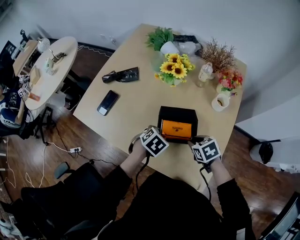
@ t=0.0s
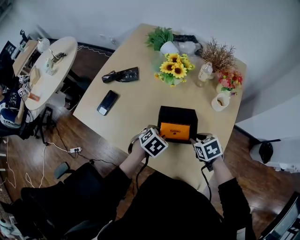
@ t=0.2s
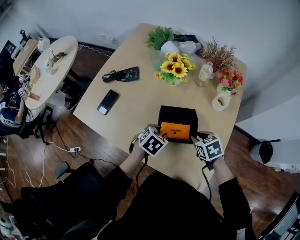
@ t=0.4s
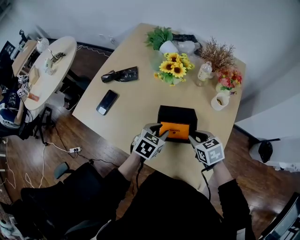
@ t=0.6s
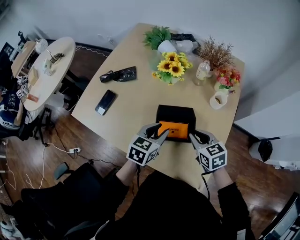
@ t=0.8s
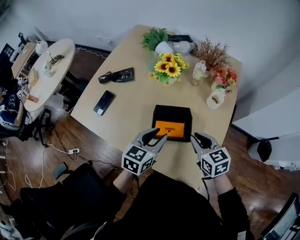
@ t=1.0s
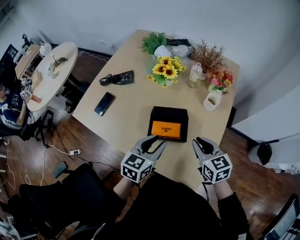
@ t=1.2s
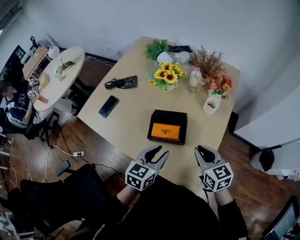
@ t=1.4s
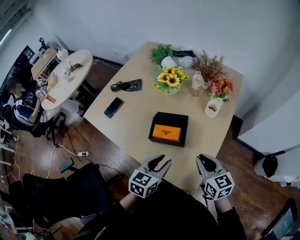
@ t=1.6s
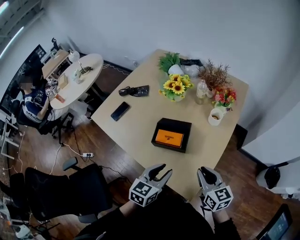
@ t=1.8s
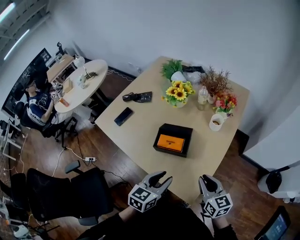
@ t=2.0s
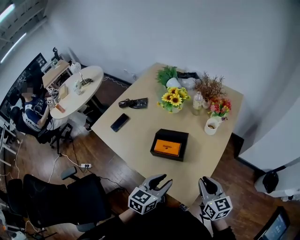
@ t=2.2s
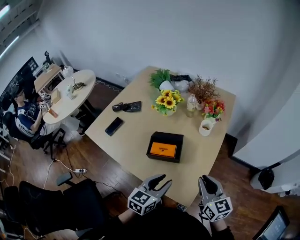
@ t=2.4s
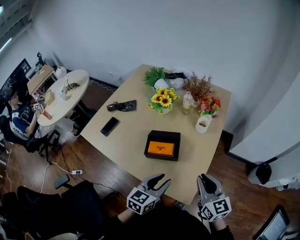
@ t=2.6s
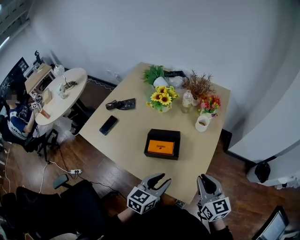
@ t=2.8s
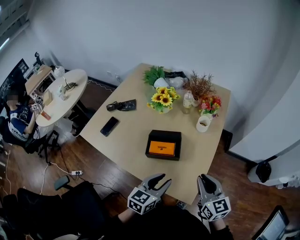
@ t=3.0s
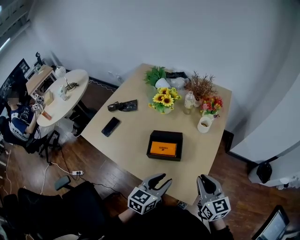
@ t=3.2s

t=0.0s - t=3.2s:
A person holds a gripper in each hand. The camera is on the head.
t=0.0s - t=1.6s: The right gripper is displaced upward, to the right and backward by approximately 20 cm, and tips its fingers upward by about 40 degrees. Meanwhile the left gripper travels backward, upward and to the right by approximately 20 cm, and tips its fingers upward by about 40 degrees.
t=1.6s - t=3.2s: The right gripper travels upward and backward by roughly 10 cm; the left gripper shifts by about 5 cm.

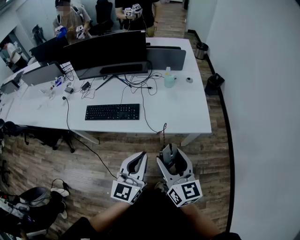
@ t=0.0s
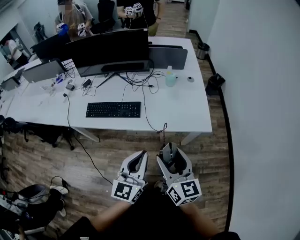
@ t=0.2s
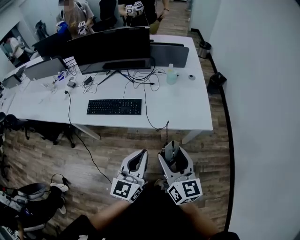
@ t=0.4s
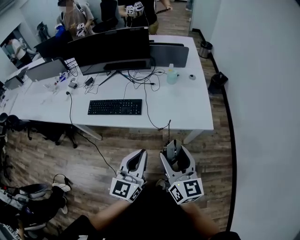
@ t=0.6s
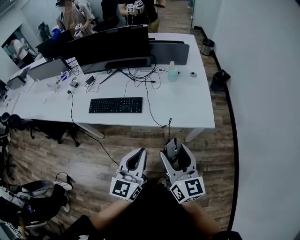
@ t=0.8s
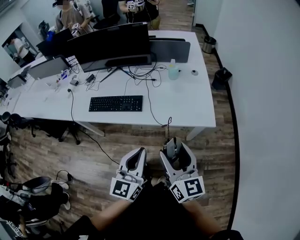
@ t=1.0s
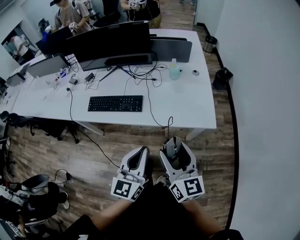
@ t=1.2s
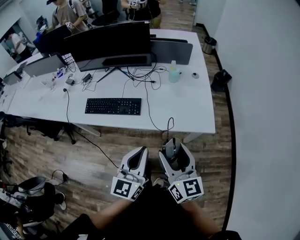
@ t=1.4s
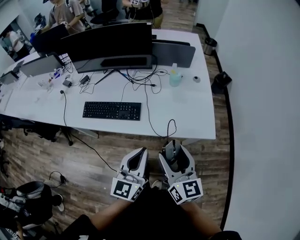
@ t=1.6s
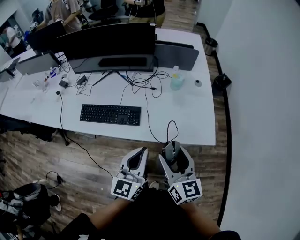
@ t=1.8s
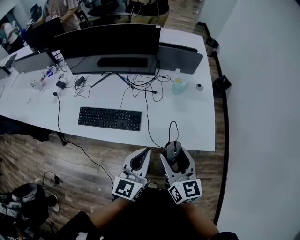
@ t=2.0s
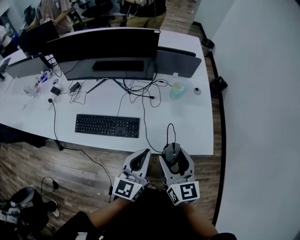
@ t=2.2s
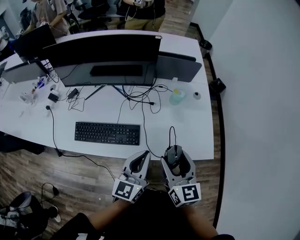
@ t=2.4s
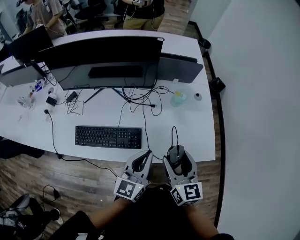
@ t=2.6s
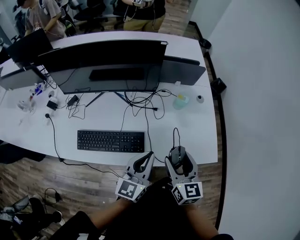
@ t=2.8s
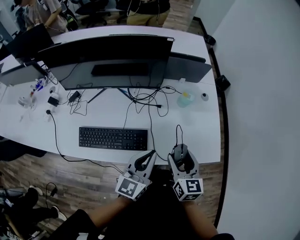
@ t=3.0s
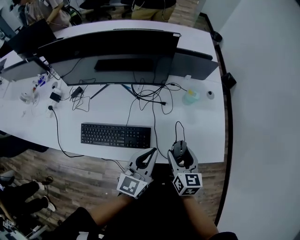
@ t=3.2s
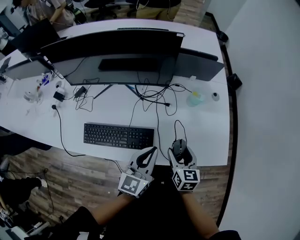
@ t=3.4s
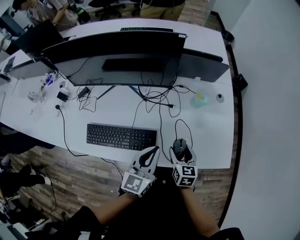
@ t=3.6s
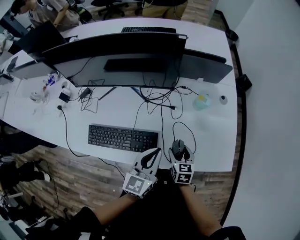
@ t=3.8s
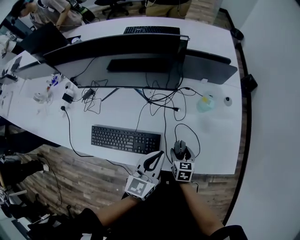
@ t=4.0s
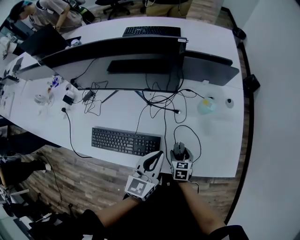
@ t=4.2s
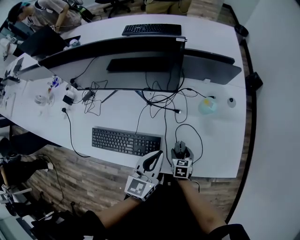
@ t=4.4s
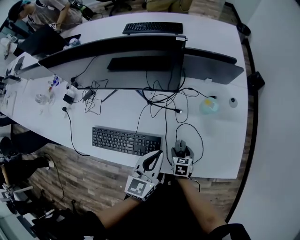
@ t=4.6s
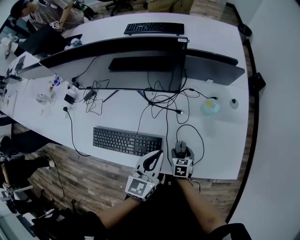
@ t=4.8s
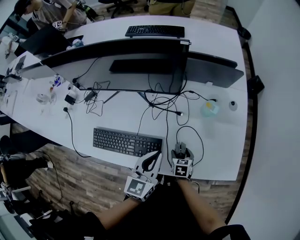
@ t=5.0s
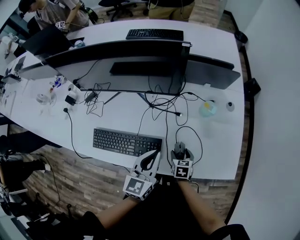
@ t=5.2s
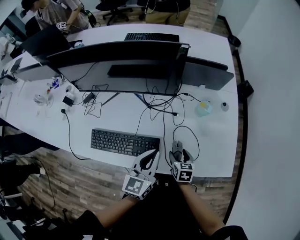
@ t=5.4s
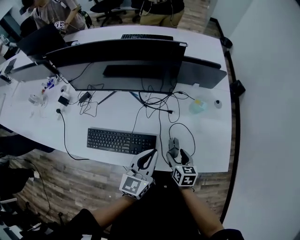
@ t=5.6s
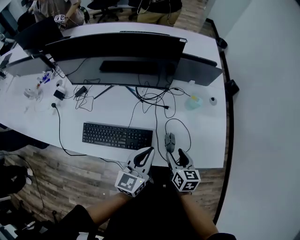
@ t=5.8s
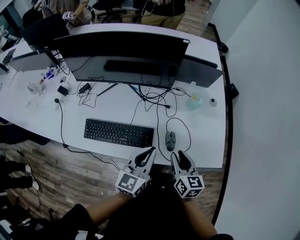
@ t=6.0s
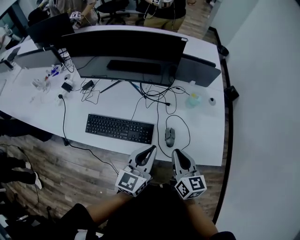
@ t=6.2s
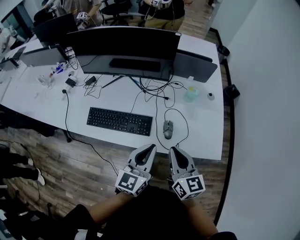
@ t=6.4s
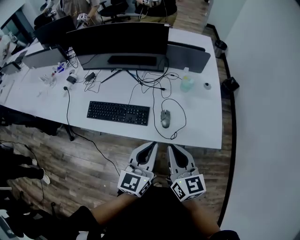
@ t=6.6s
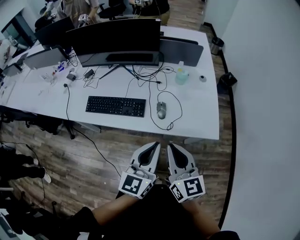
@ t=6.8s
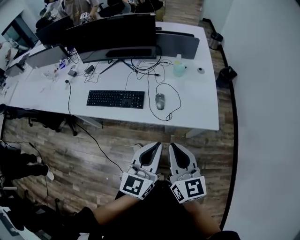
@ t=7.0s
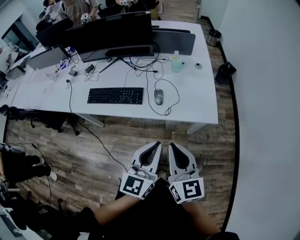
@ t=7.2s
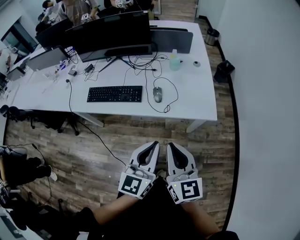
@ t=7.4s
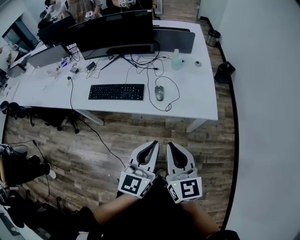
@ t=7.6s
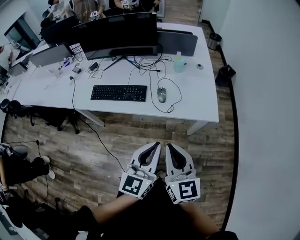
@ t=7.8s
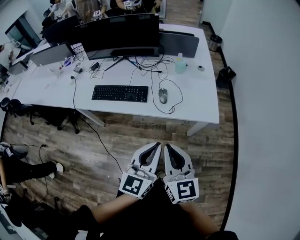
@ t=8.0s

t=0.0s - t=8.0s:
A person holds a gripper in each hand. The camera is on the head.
t=0.0s - t=1.6s: The two grippers go roughly 5 cm forward.
t=1.6s - t=3.2s: The left gripper goes roughly 25 cm forward. Meanwhile the right gripper travels forward and downward by about 25 cm, and swivels some 30 degrees.
t=3.2s - t=4.8s: The right gripper moves downward, approximately 25 cm, and turns by roughly 30 degrees, while the left gripper heads forward, covering approximately 10 cm.
t=4.8s - t=6.4s: The right gripper travels upward and backward by roughly 35 cm, angles its fingers upward, by some 50 degrees, and closes, while the left gripper is displaced backward and upward by some 20 cm.
t=6.4s - t=8.0s: The grippers both shift backward by roughly 25 cm.

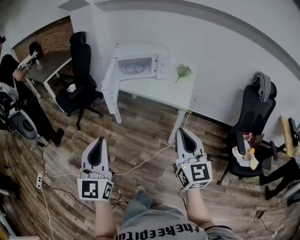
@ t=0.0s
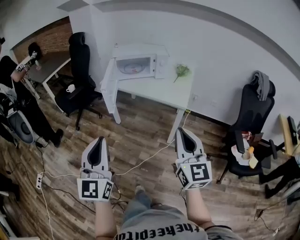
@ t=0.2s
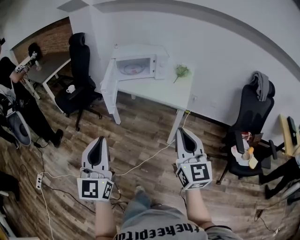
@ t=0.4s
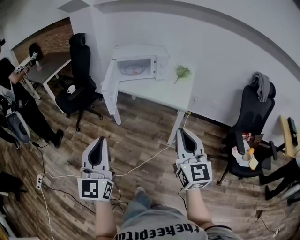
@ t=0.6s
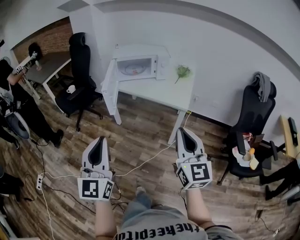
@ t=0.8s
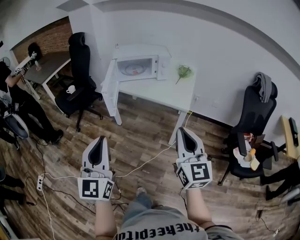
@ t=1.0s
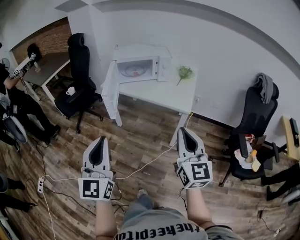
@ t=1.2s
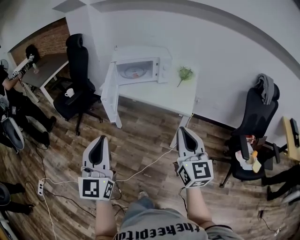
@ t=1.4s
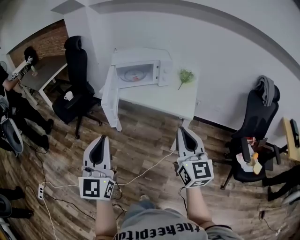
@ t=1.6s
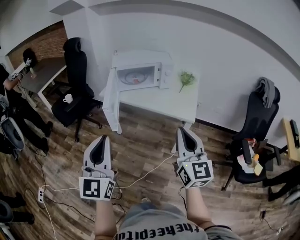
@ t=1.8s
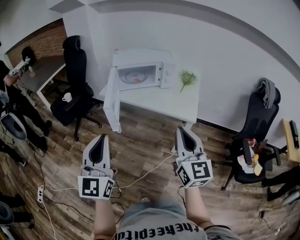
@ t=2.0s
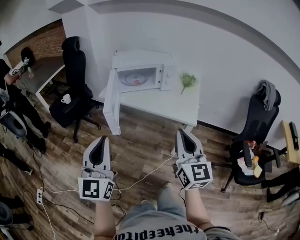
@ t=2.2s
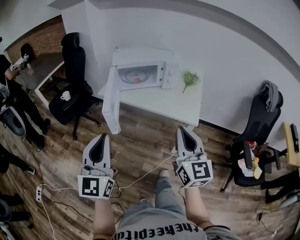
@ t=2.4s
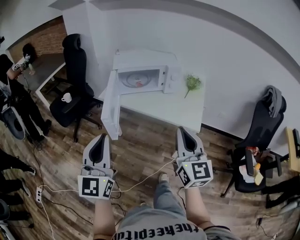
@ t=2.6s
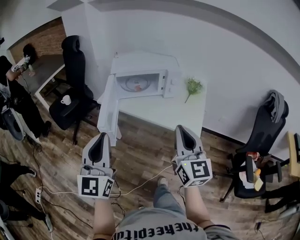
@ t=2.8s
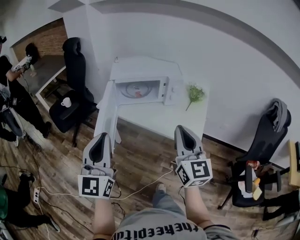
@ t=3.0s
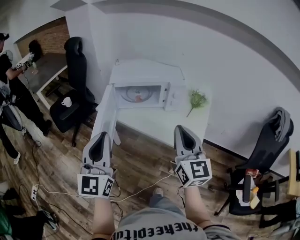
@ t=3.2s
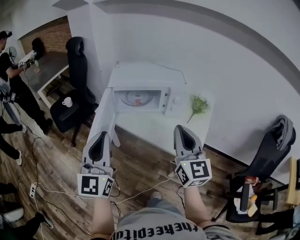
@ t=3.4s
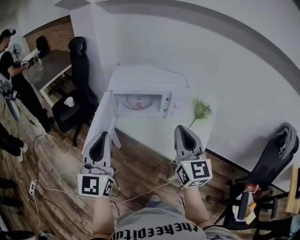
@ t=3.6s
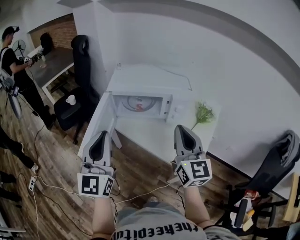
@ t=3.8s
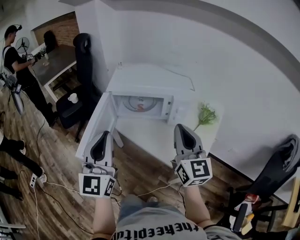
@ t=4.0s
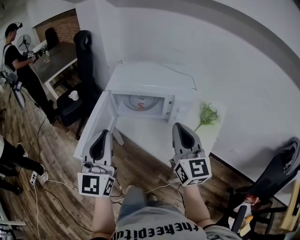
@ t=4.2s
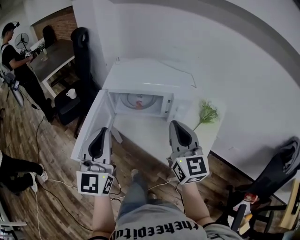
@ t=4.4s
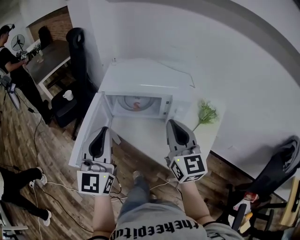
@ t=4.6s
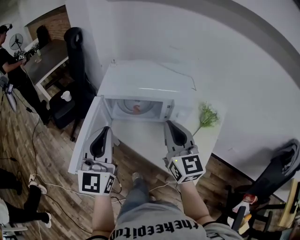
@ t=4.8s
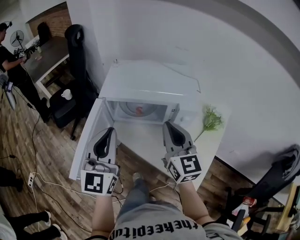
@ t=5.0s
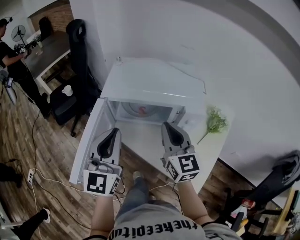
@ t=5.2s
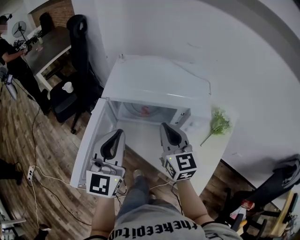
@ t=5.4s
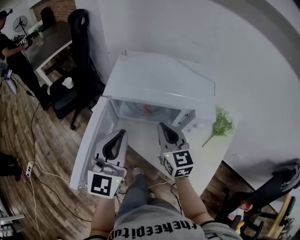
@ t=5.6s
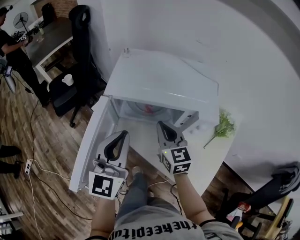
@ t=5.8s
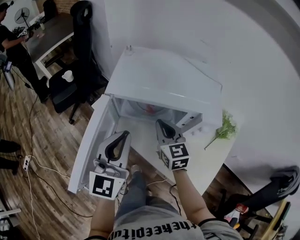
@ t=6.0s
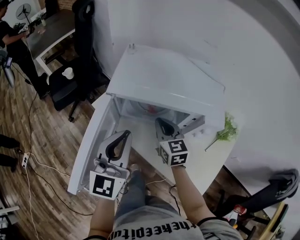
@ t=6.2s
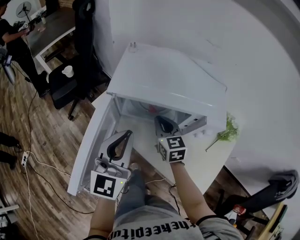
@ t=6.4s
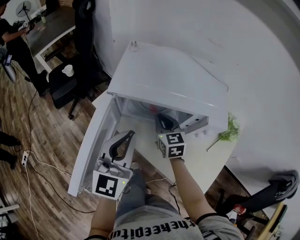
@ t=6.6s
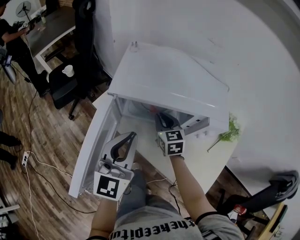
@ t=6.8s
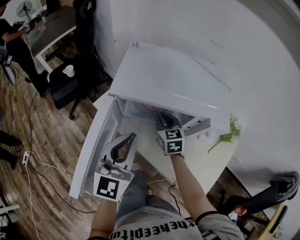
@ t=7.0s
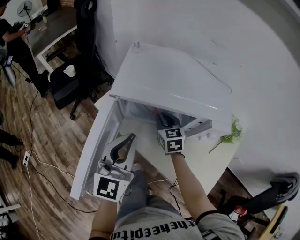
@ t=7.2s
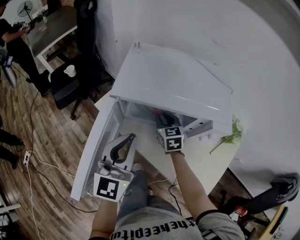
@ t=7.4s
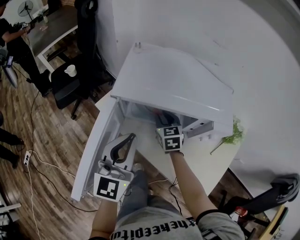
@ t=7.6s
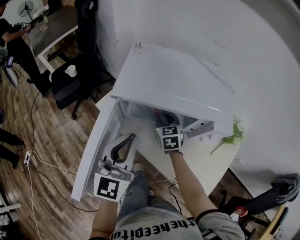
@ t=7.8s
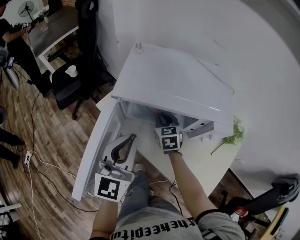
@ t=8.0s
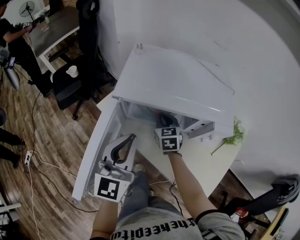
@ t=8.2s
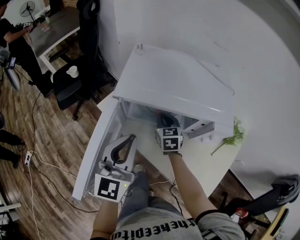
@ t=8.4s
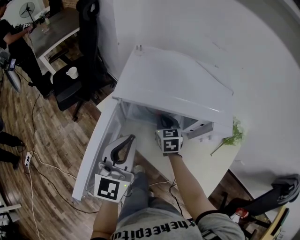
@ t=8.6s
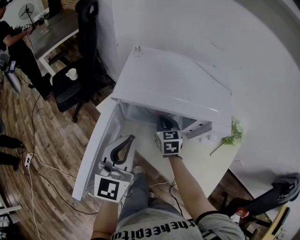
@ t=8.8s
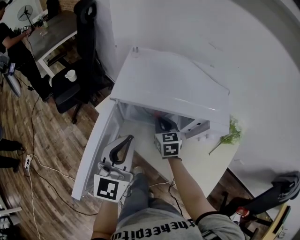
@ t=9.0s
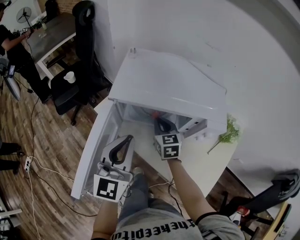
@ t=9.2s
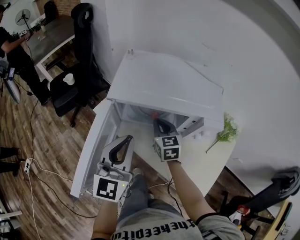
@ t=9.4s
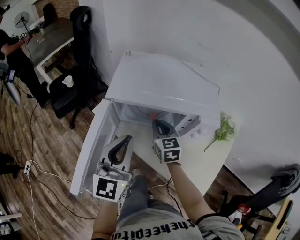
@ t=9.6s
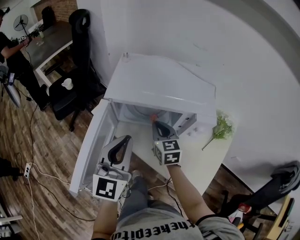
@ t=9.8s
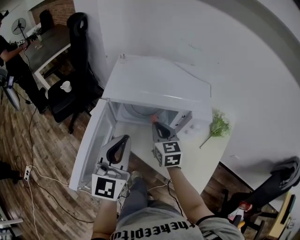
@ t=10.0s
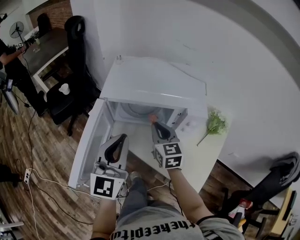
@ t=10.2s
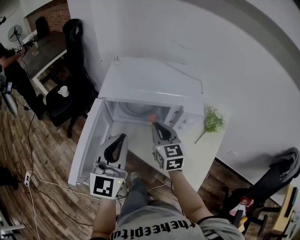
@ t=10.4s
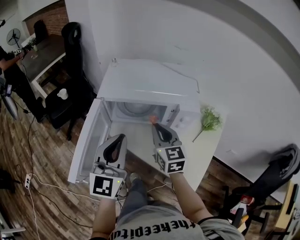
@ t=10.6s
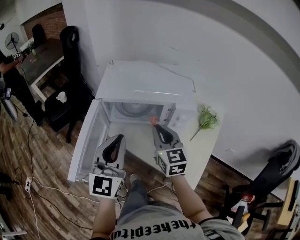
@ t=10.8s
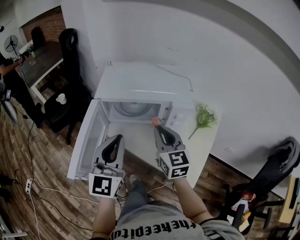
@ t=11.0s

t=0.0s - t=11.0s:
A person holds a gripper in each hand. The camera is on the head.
t=0.0s - t=1.6s: The two grippers go approximately 10 cm forward.
t=1.6s - t=3.2s: Both grippers travel together forward, roughly 25 cm.
t=3.2s - t=4.8s: The left gripper is displaced forward and to the right by roughly 20 cm, while the right gripper moves forward, roughly 20 cm.
t=4.8s - t=6.2s: The left gripper travels downward and forward by about 15 cm. Meanwhile the right gripper heads downward, forward and to the left, covering roughly 25 cm, and changes its angle by some 30 degrees.
t=6.2s - t=7.8s: The right gripper is displaced downward and forward by approximately 10 cm, and opens.
t=7.8s - t=9.4s: The right gripper changes place by roughly 5 cm, and closes.
t=9.4s - t=11.0s: The left gripper moves backward and upward, roughly 10 cm, while the right gripper travels upward, backward and to the right by approximately 25 cm.

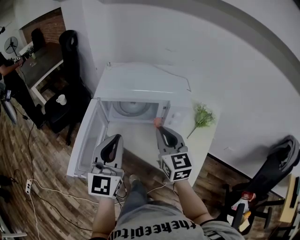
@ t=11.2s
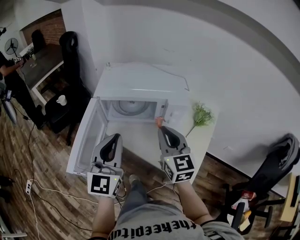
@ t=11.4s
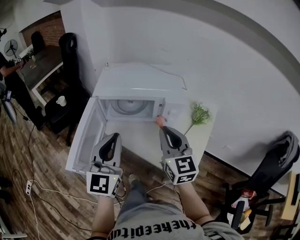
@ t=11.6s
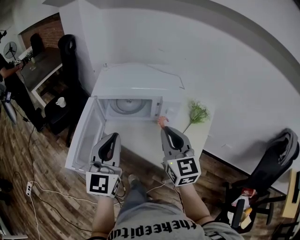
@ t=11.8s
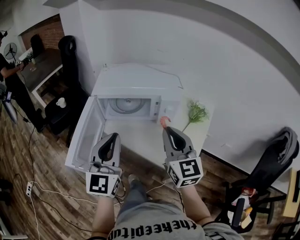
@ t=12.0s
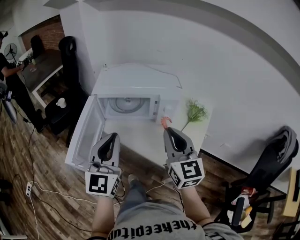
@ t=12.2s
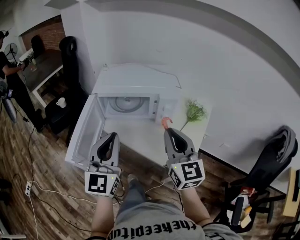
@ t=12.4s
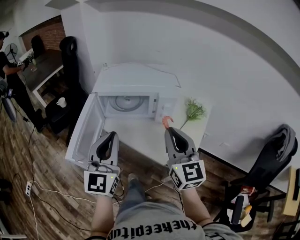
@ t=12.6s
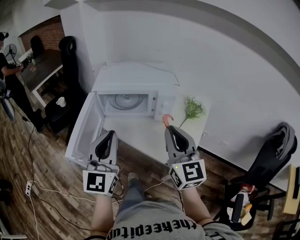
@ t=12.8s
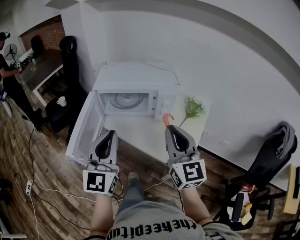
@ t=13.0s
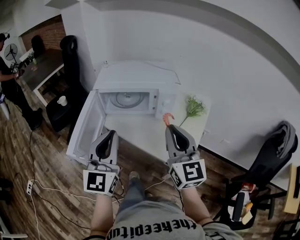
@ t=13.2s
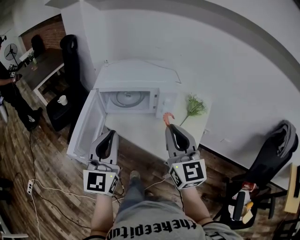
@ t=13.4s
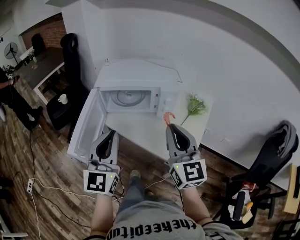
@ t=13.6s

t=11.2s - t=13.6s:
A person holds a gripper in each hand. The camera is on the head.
t=11.2s - t=12.4s: The left gripper goes about 5 cm backward. Meanwhile the right gripper shifts roughly 15 cm backward, upward and to the right.
t=12.4s - t=13.6s: The grippers move only a little.
